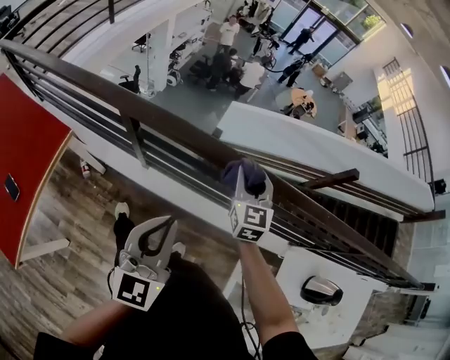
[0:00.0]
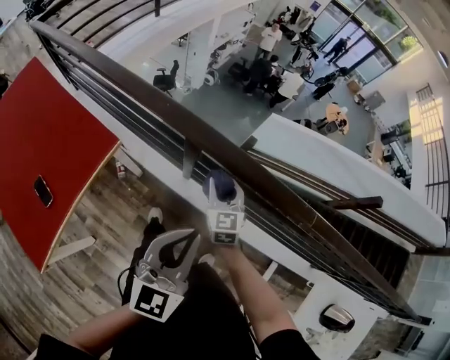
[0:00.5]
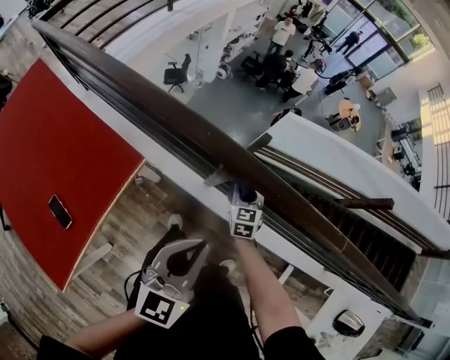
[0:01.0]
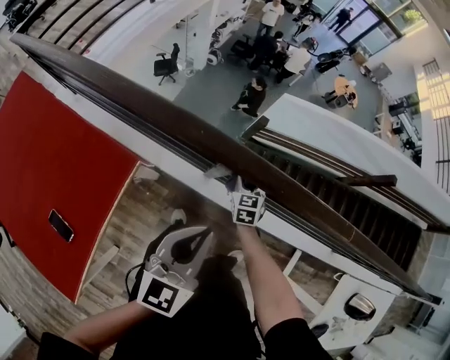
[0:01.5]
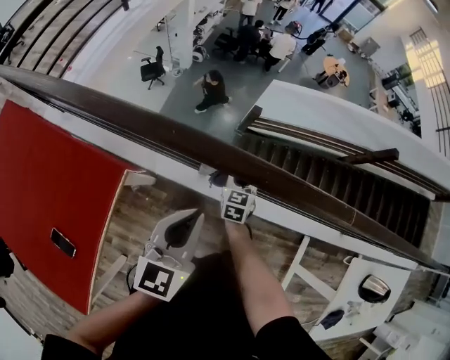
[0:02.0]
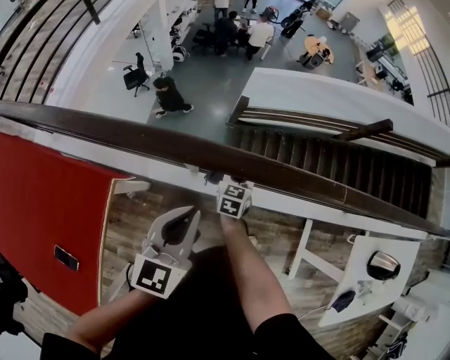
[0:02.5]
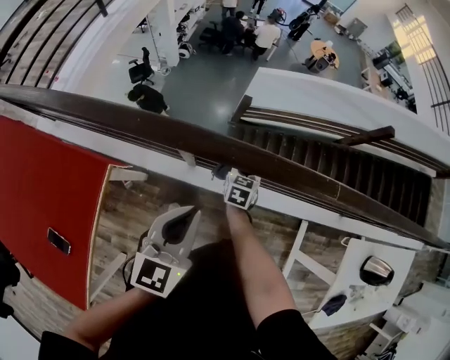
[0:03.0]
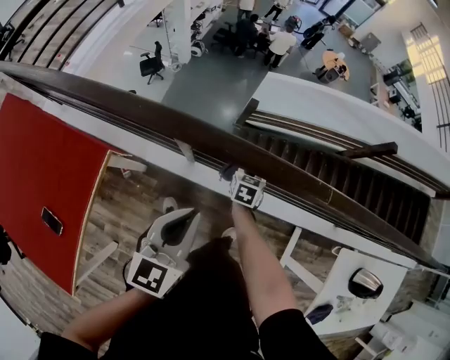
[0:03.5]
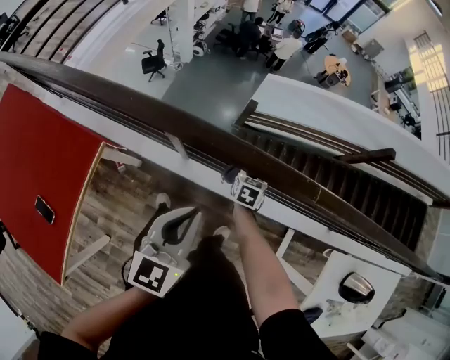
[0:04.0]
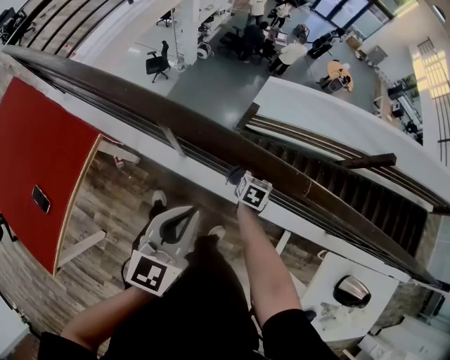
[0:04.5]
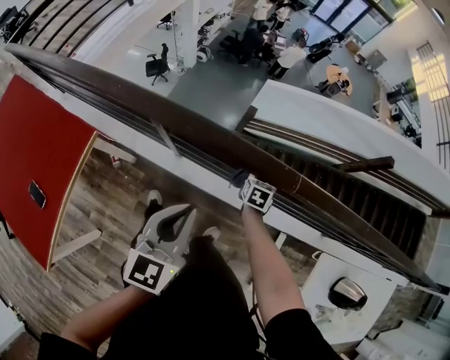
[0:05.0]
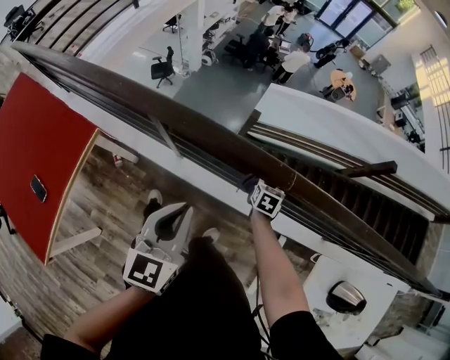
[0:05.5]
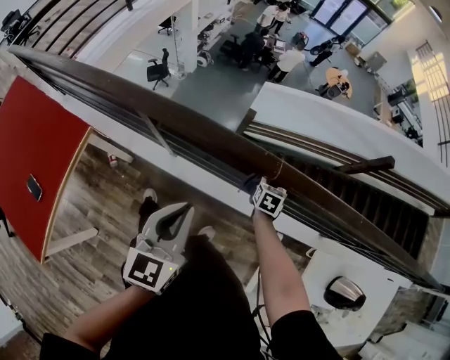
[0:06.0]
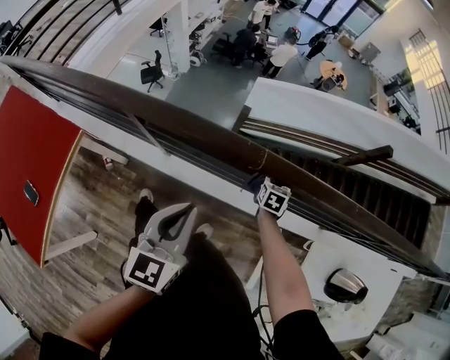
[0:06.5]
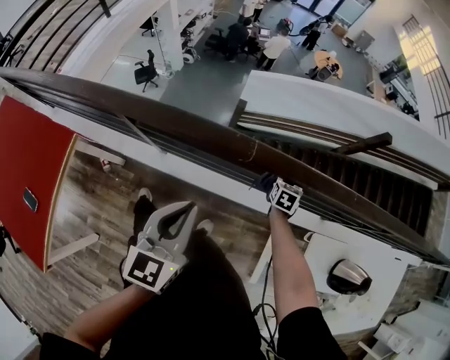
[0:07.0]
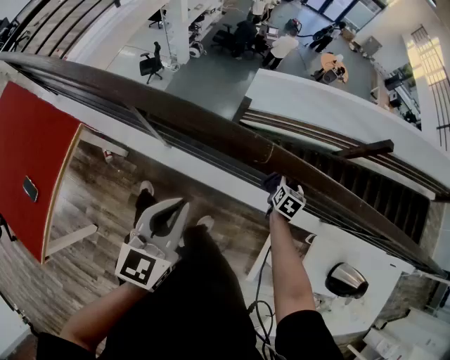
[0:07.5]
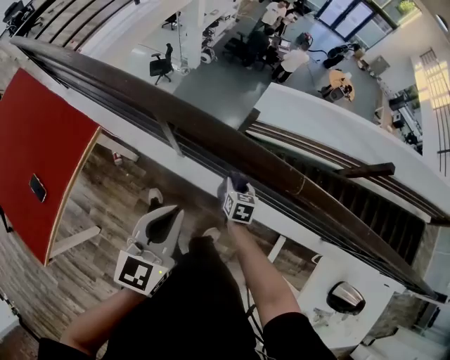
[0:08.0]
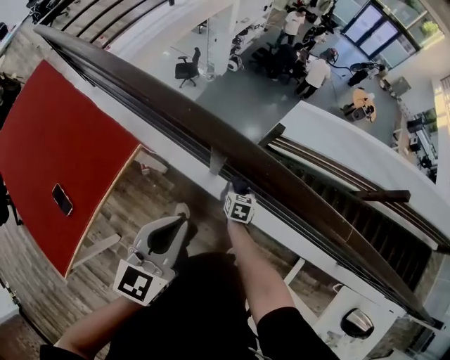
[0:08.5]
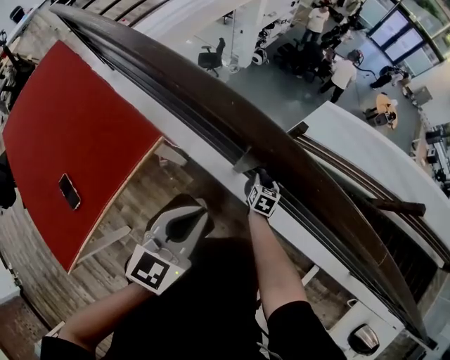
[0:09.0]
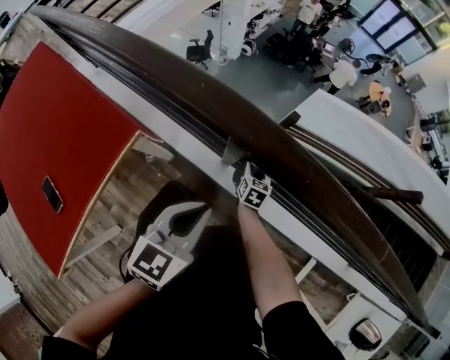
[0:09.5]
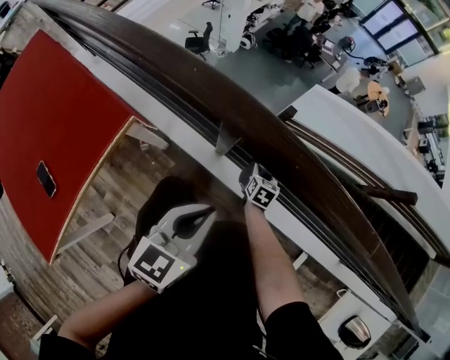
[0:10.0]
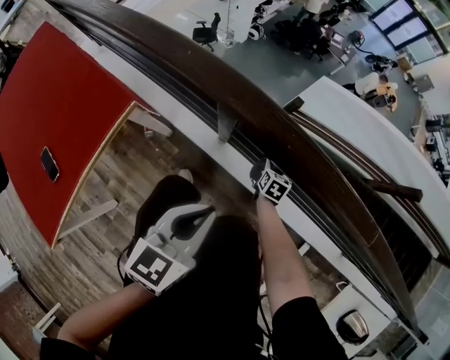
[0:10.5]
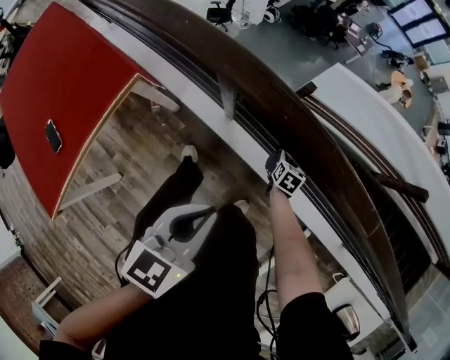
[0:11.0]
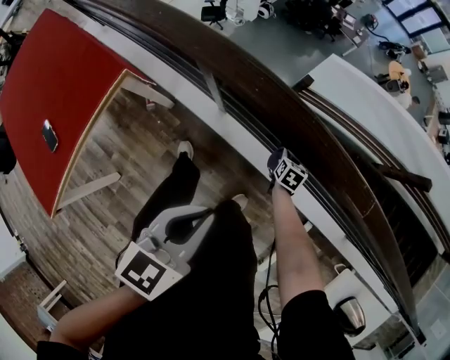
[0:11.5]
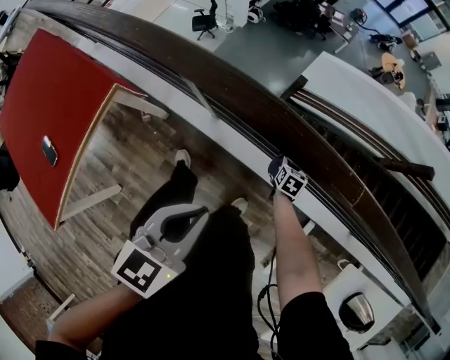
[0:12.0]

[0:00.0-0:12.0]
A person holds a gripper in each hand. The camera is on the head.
0:00.0 to 0:02.0: The right gripper moves to the left and downward, about 35 cm, and turns by about 20 degrees. The left gripper shifts roughly 25 cm to the left and forward.
0:02.0 to 0:04.0: The two grippers go approximately 15 cm to the right.
0:04.0 to 0:06.0: The left gripper heads to the right, covering roughly 10 cm. The right gripper moves to the right, some 20 cm.
0:06.0 to 0:08.0: The right gripper travels to the left and backward by some 20 cm. Meanwhile the left gripper goes roughly 5 cm to the left.
0:08.0 to 0:10.0: Both grippers travel together downward, to the left and forward, roughly 15 cm.
0:10.0 to 0:12.0: The right gripper shifts roughly 20 cm to the right. Meanwhile the left gripper heads to the right, backward and upward, covering some 15 cm.

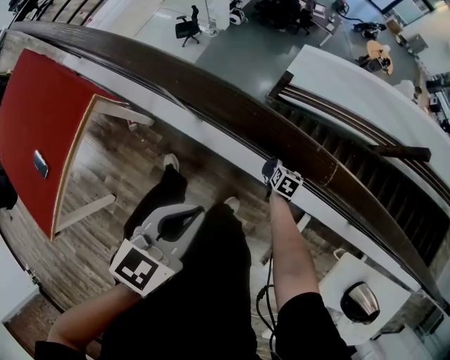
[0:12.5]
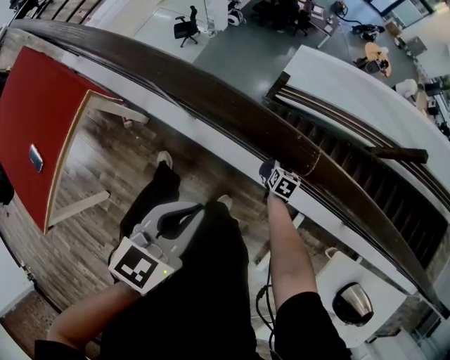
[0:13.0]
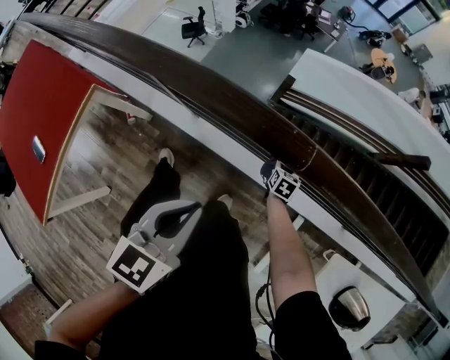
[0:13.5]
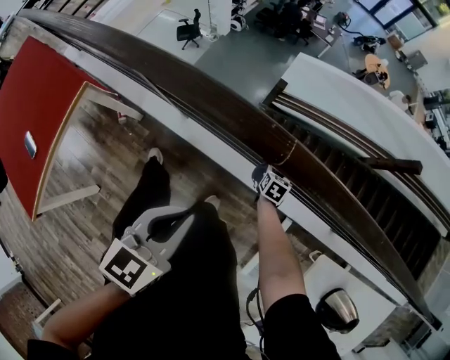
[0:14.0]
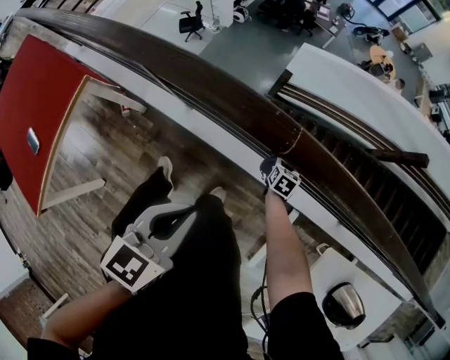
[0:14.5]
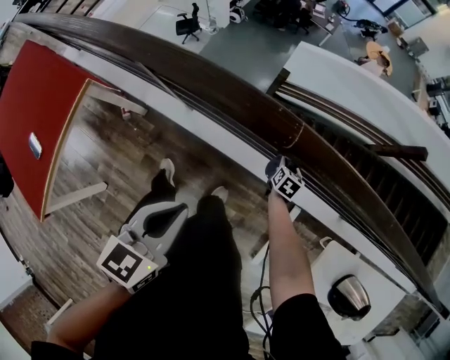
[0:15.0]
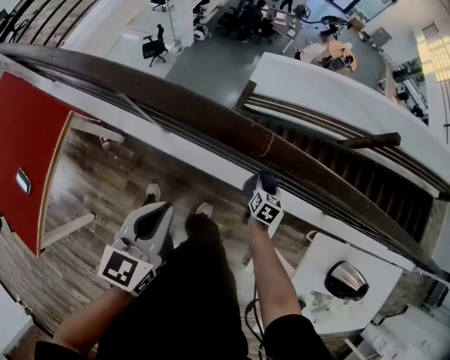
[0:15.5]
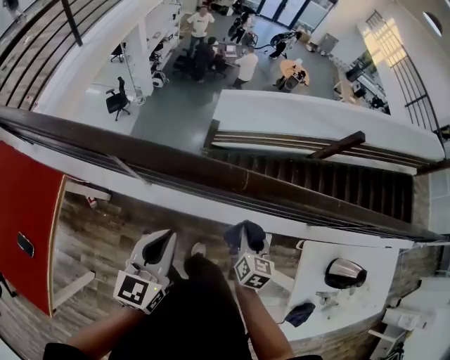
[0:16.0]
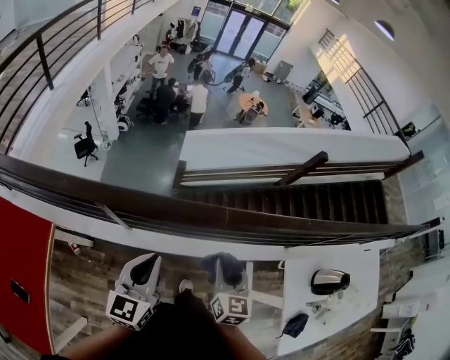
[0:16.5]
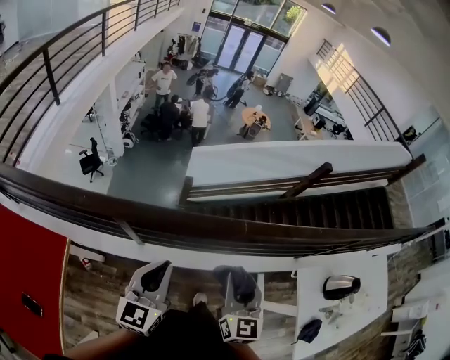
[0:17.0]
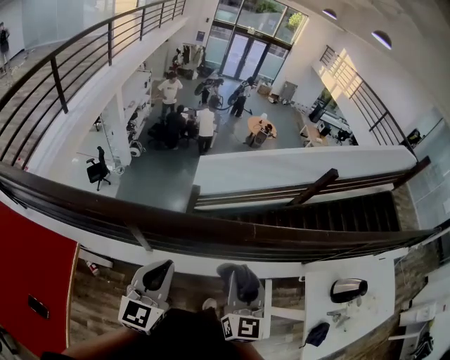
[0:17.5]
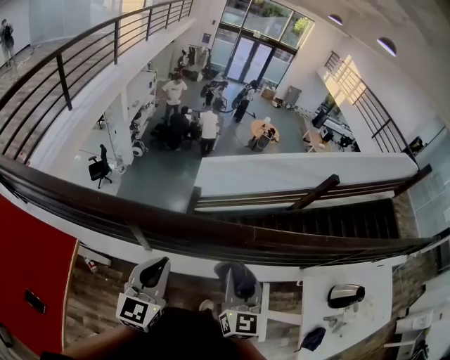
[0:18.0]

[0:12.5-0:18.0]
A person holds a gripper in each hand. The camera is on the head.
0:12.5 to 0:14.5: Both grippers travel together to the right, roughly 5 cm.
0:14.5 to 0:16.0: The right gripper heads upward and backward, covering about 30 cm, and rotates some 20 degrees. The left gripper moves to the left, roughly 5 cm.
0:16.0 to 0:18.0: The left gripper goes roughly 10 cm to the left. Meanwhile the right gripper travels upward and to the left by roughly 20 cm, and changes its angle by some 30 degrees.

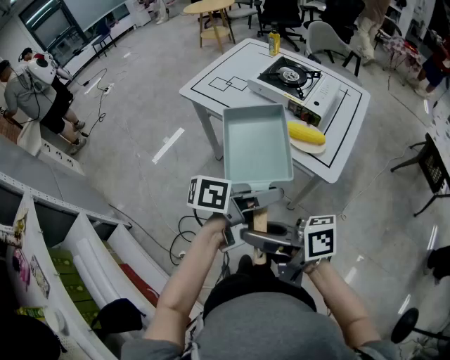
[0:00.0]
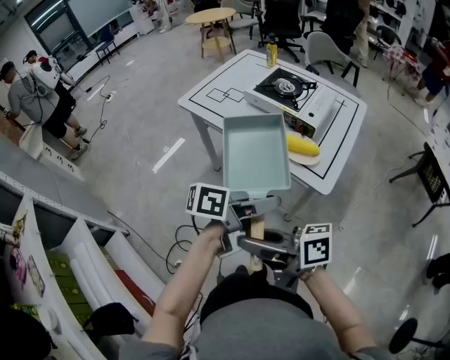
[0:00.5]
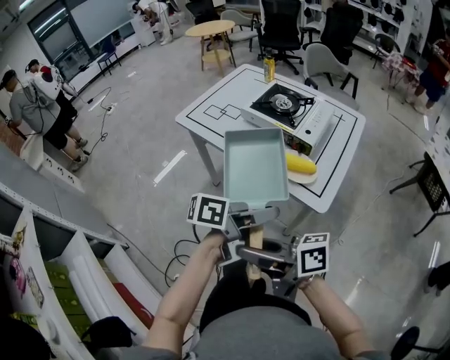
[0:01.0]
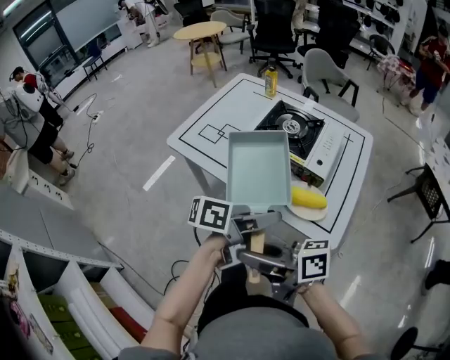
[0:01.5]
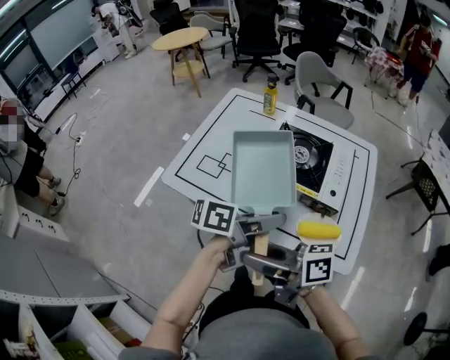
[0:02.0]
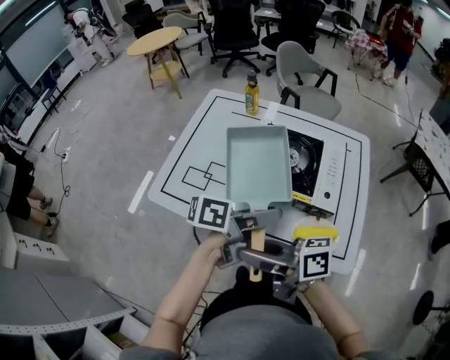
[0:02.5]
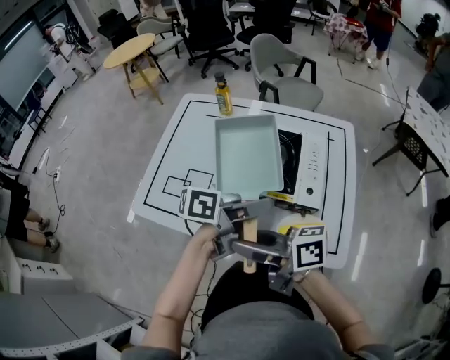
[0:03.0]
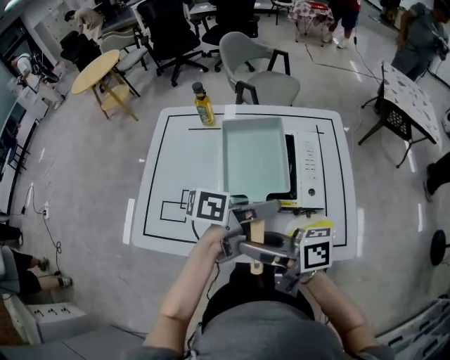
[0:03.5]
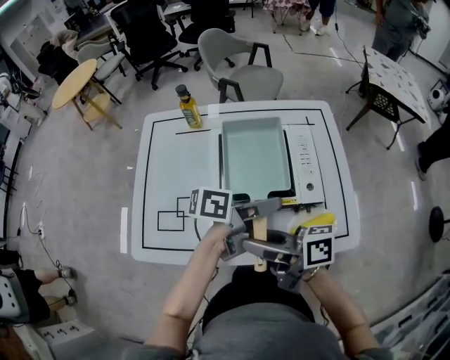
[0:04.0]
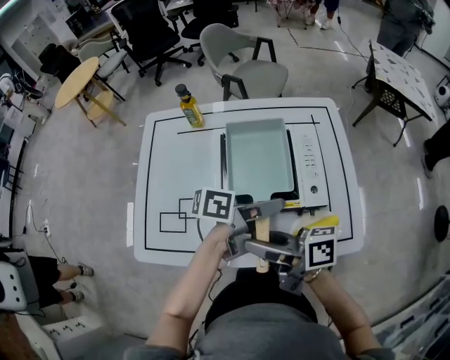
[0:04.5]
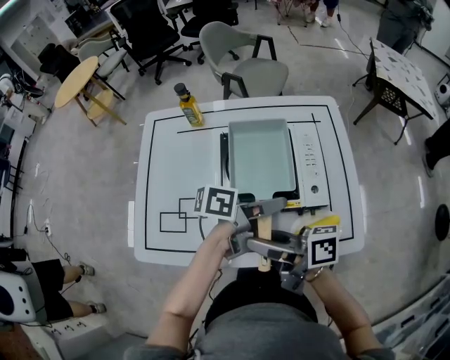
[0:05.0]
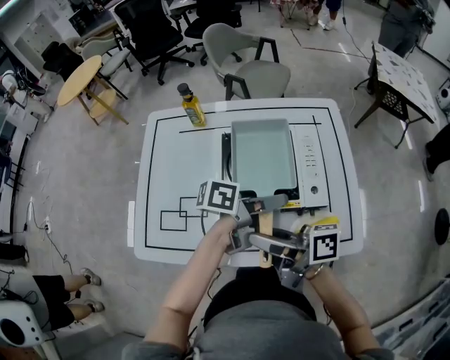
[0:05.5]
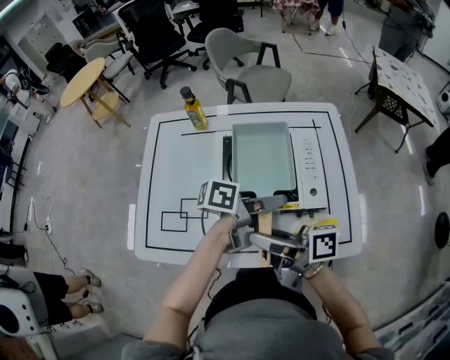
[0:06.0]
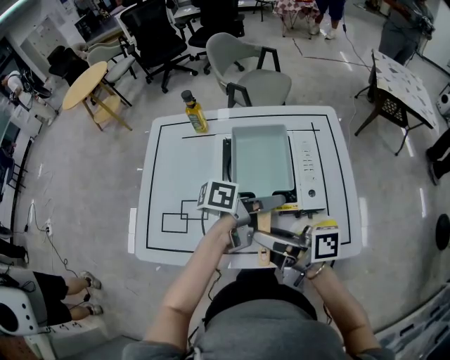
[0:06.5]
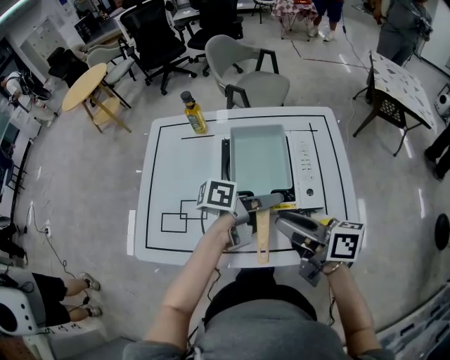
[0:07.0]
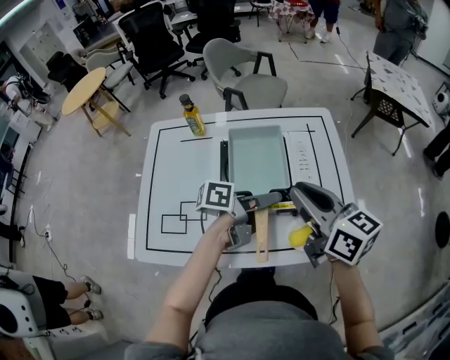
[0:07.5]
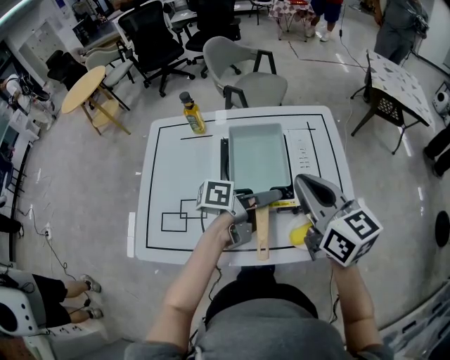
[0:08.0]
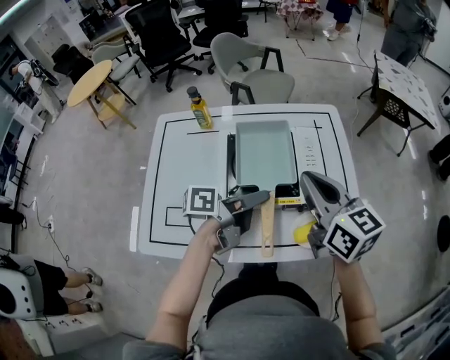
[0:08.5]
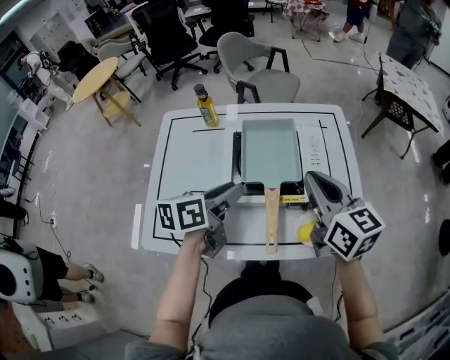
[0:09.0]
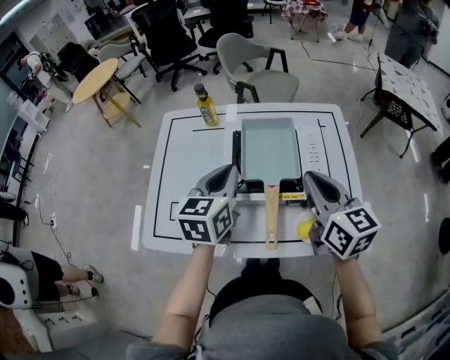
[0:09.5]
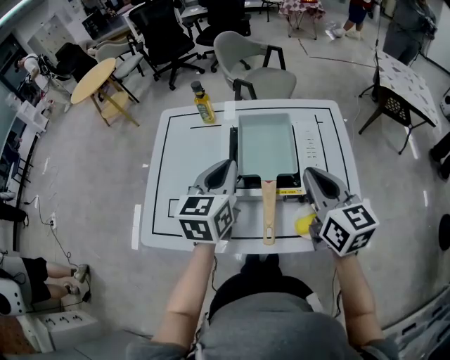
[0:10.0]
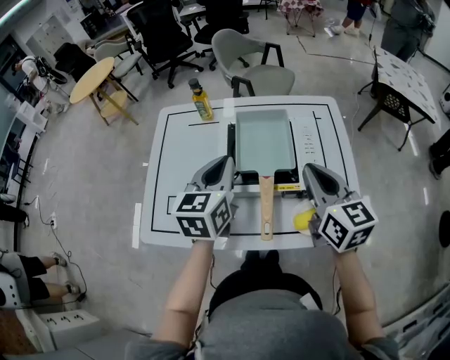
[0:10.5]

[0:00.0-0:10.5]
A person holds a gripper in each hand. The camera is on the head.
0:00.0 to 0:02.0: The left gripper moves about 30 cm; the right gripper changes place by approximately 30 cm.
0:02.0 to 0:04.0: The left gripper moves about 15 cm, and changes its angle by some 30 degrees. The right gripper changes place by about 15 cm, and swivels some 30 degrees.
0:04.0 to 0:06.5: The grippers stay close to where they were, moving slightly.
0:06.5 to 0:08.5: The left gripper ends up about 5 cm from where it was. Meanwhile the right gripper ends up about 15 cm from where it was, rotates about 60 degrees, and closes its fingers.
0:08.5 to 0:10.5: The left gripper heads to the left and upward, covering roughly 10 cm, changes its angle by about 70 degrees, and closes its fingers.
